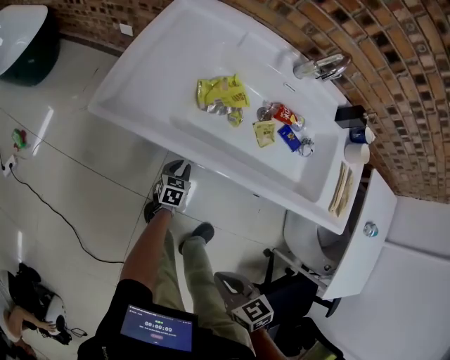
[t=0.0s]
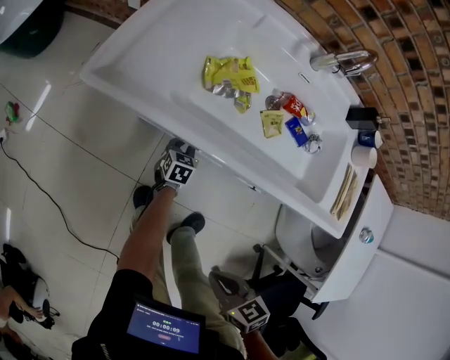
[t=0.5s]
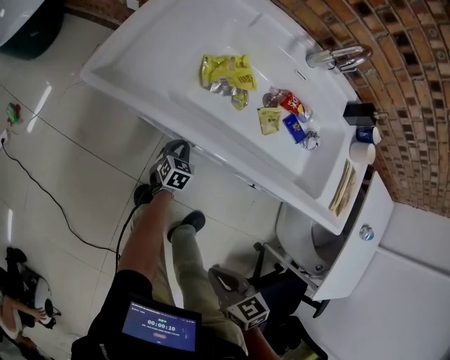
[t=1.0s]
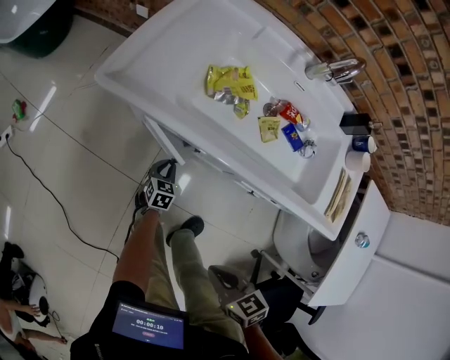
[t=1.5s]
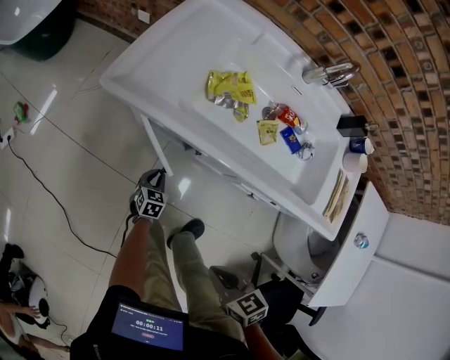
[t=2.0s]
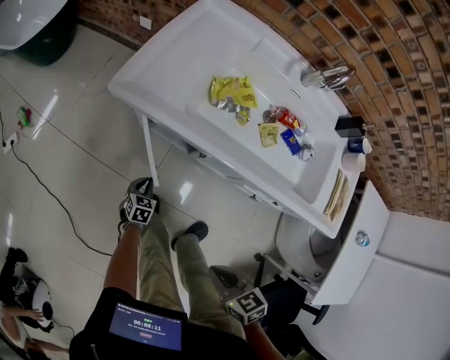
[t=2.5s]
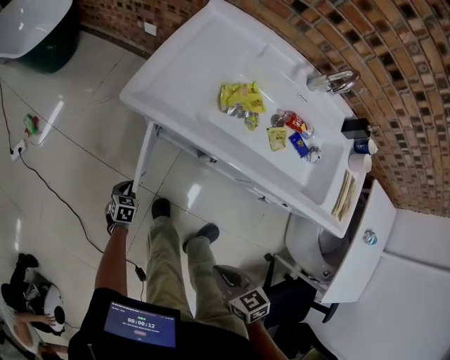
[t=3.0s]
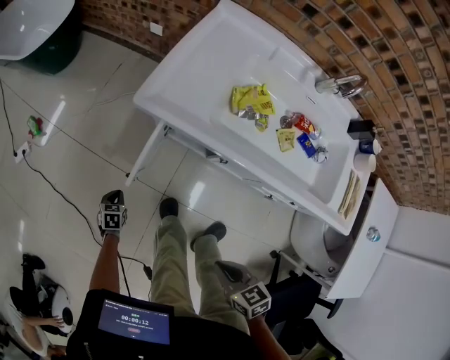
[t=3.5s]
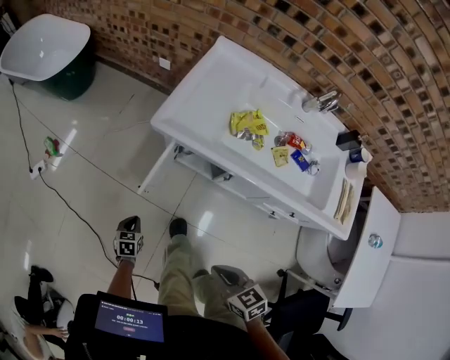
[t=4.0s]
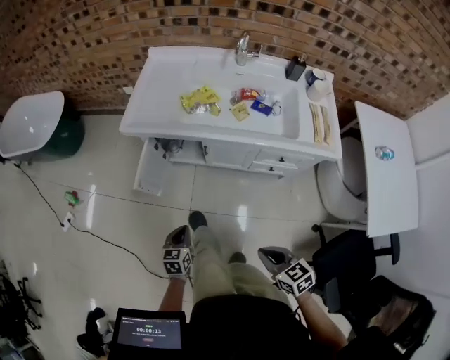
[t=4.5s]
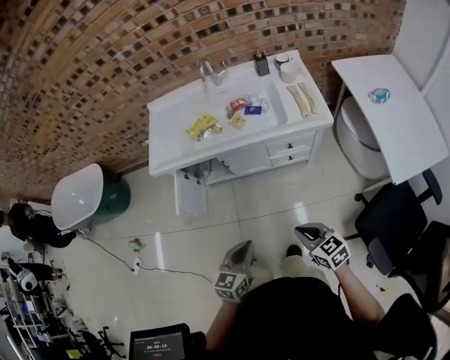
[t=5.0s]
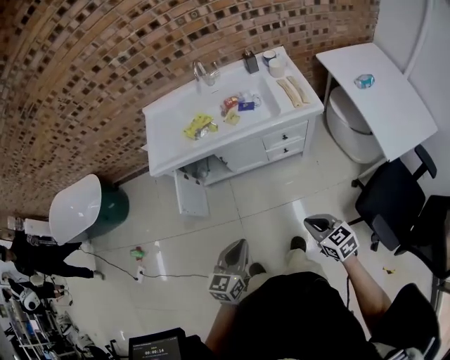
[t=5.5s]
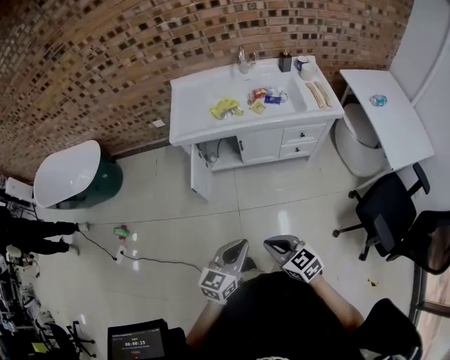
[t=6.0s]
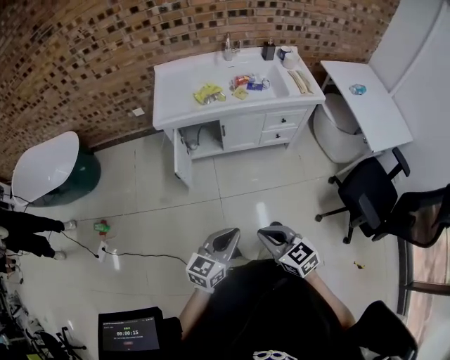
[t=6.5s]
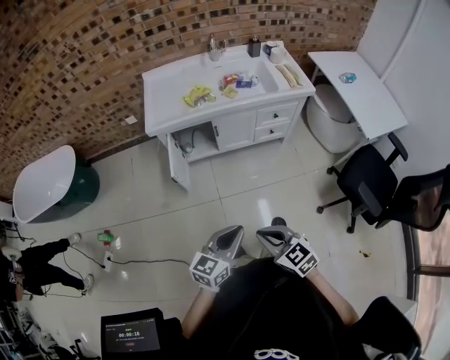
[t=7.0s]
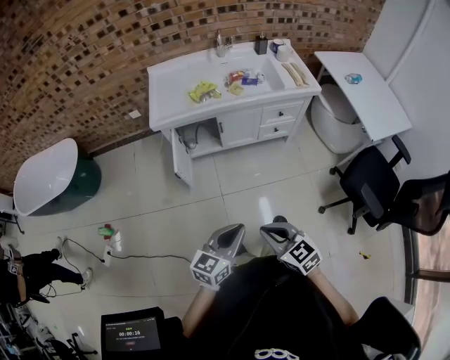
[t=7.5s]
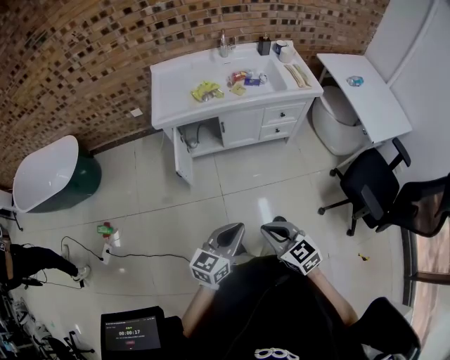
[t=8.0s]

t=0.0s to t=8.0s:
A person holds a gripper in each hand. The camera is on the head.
t=0.0s to t=2.0s: The left gripper goes some 10 cm to the left and backward.
t=2.0s to t=4.0s: The left gripper moves to the left, approximately 25 cm. The right gripper is displaced to the left and upward by some 15 cm.
t=4.0s to t=6.0s: The right gripper changes place by some 30 cm, and rotates approximately 20 degrees. The left gripper is displaced upward by some 40 cm, and tilts its fingers about 40 degrees upward.
t=6.0s to t=8.0s: The right gripper moves some 5 cm.

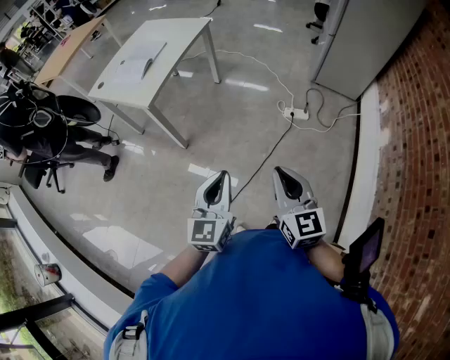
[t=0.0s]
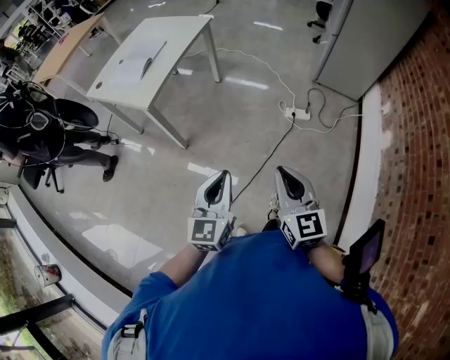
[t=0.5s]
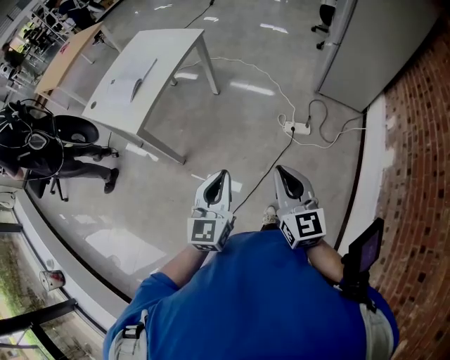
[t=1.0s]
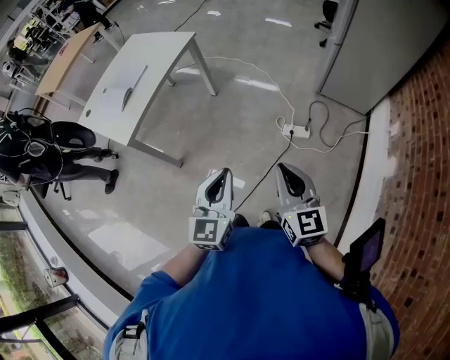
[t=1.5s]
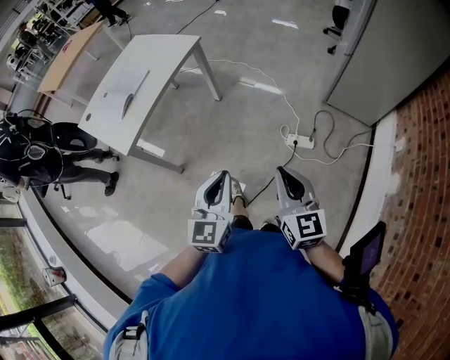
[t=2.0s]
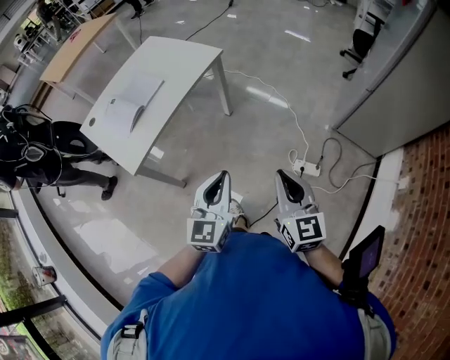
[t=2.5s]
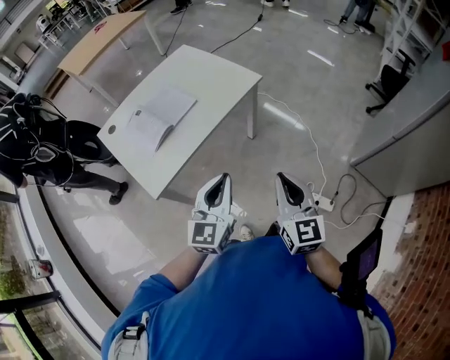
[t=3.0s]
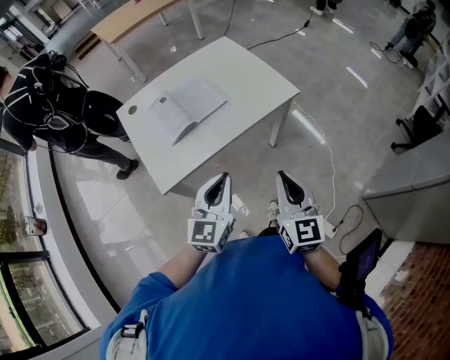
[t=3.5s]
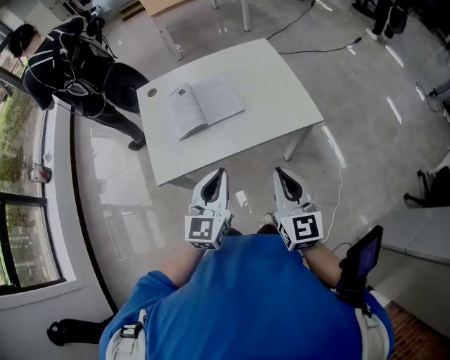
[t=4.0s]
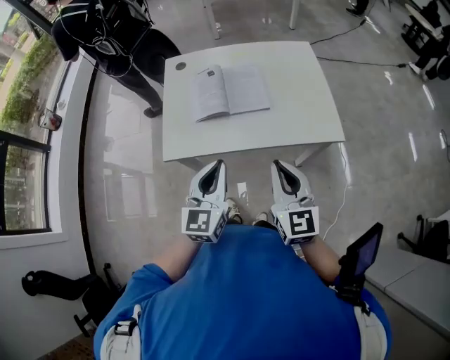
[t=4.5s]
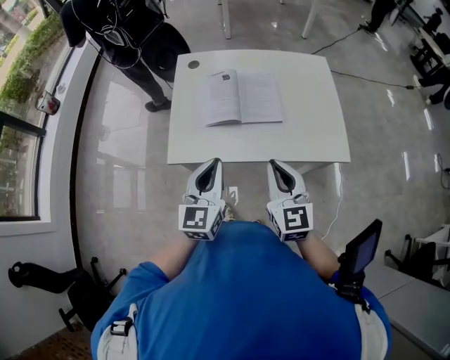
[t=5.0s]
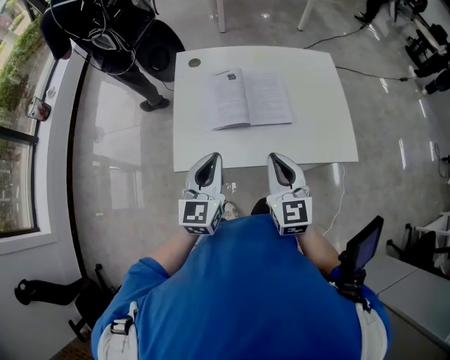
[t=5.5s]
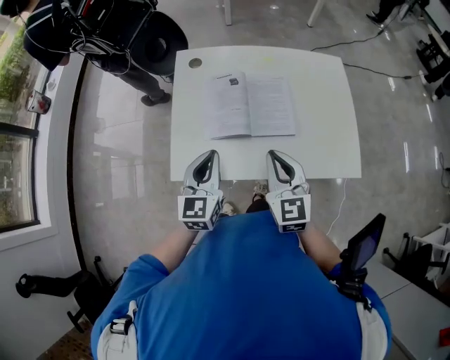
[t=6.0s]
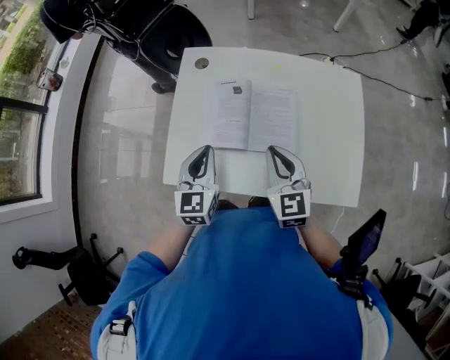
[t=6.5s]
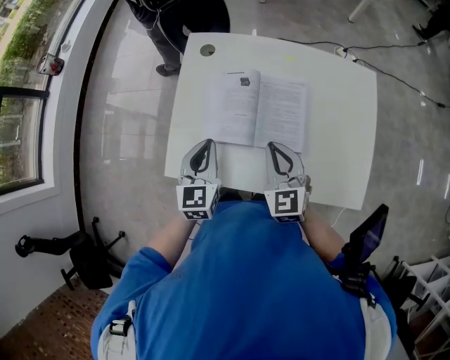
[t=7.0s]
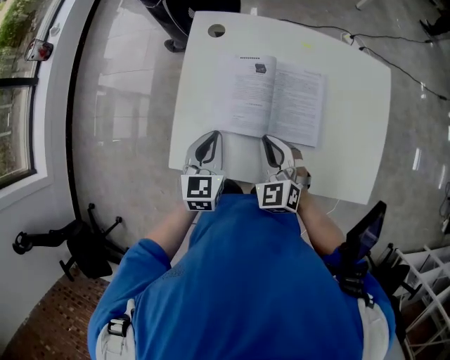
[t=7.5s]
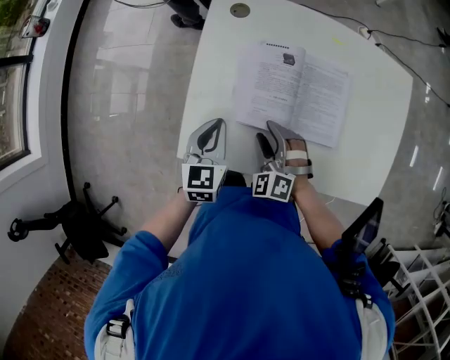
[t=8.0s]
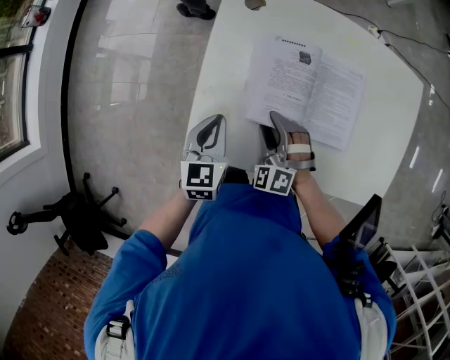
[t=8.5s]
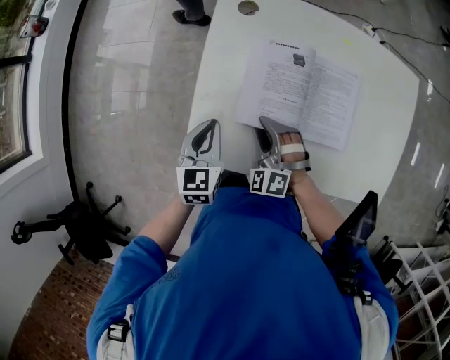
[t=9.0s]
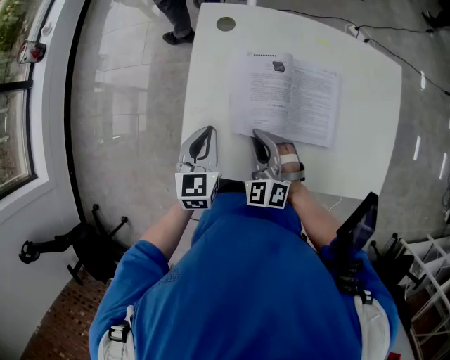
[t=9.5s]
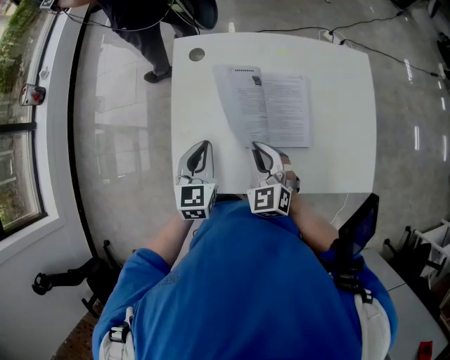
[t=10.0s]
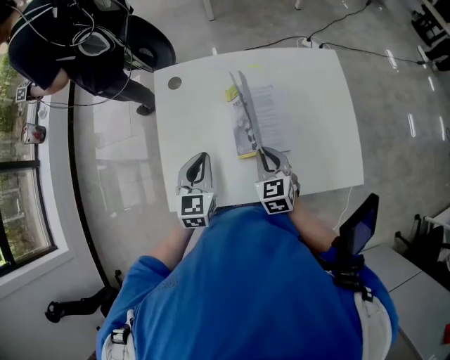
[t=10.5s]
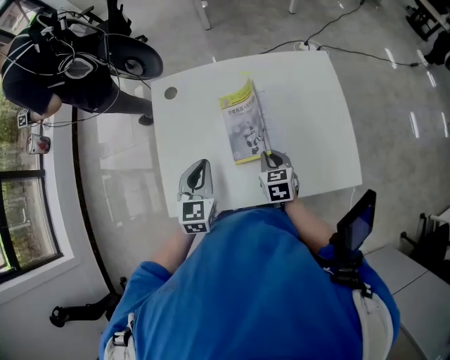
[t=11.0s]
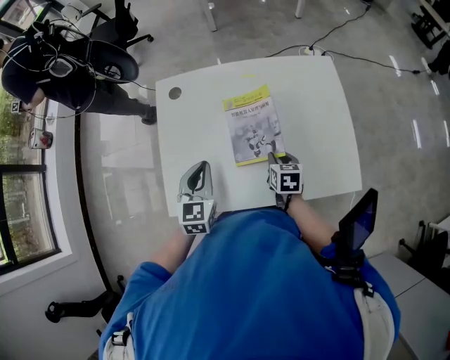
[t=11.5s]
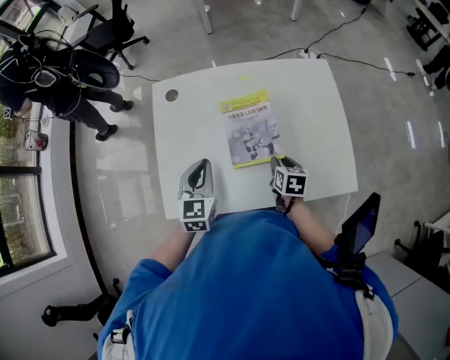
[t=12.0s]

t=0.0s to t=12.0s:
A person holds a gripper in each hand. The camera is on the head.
t=0.0s to t=2.0s: The grippers both shift forward and to the right by about 35 cm.
t=2.0s to t=4.0s: Both grippers are carried about 60 cm. The left gripper swivels roughly 40 degrees. The right gripper turns by roughly 40 degrees.
t=4.0s to t=6.0s: The grippers both shift forward and to the left by approximately 25 cm. The left gripper turns by about 20 degrees, while the right gripper swivels roughly 30 degrees.
t=6.0s to t=8.0s: The two grippers go about 20 cm downward, forward and to the left. The right gripper rolls counterclockwise, seen from behind, by about 50 degrees, and opens its fingers.
t=8.0s to t=10.0s: The left gripper shifts about 5 cm upward. Meanwhile the right gripper travels upward and to the right by approximately 10 cm, changes its angle by approximately 30 degrees, and closes.
t=10.0s to t=12.0s: The left gripper shifts about 10 cm to the right. The right gripper is displaced to the right and downward by approximately 20 cm, rotates around the line of its fingers by approximately 60 degrees, clockwise from behind, and opens.

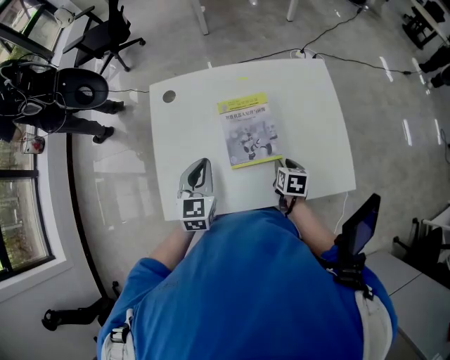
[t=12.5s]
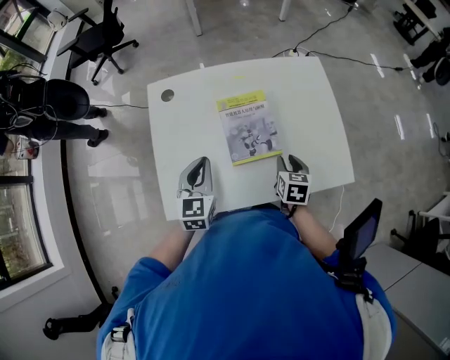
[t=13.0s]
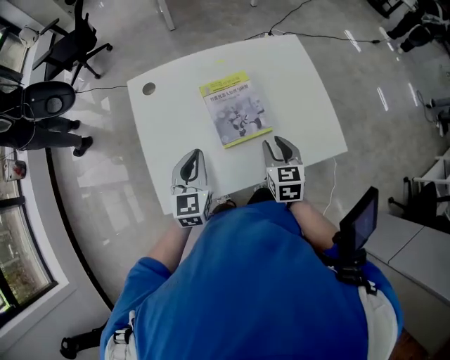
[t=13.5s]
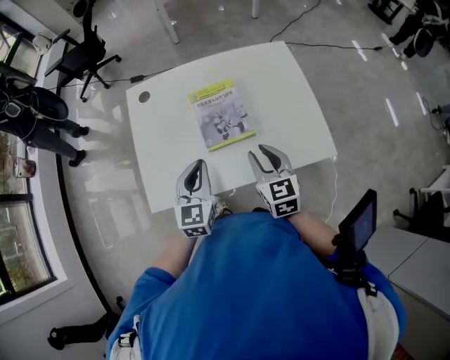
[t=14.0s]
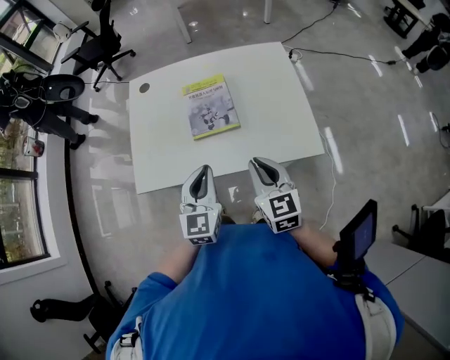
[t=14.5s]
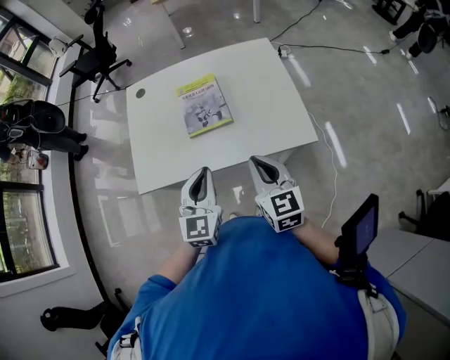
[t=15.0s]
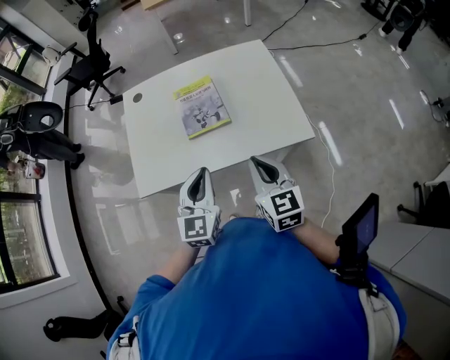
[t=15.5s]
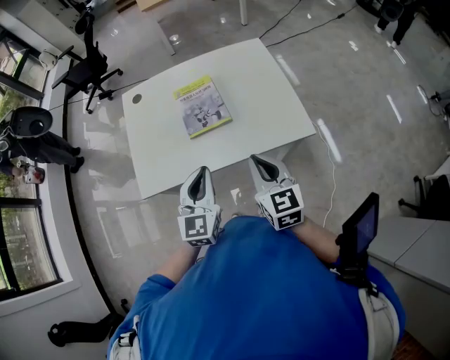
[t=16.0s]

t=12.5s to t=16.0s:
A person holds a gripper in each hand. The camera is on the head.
t=12.5s to t=14.5s: The left gripper moves backward and to the right, about 25 cm; the right gripper moves upward and backward, approximately 25 cm, points its fingers approximately 30 degrees further upward, and closes up.
t=14.5s to t=16.0s: The right gripper changes place by some 5 cm. Meanwhile the left gripper moves approximately 5 cm.

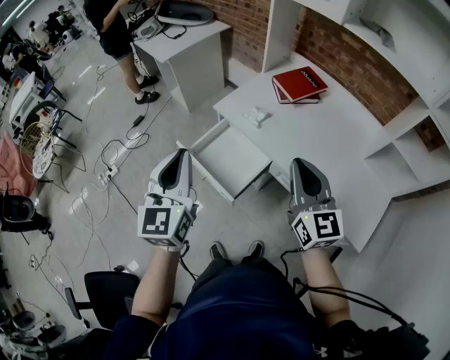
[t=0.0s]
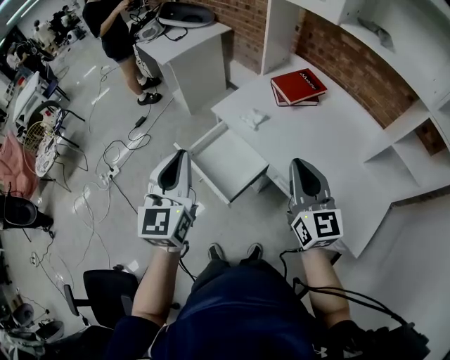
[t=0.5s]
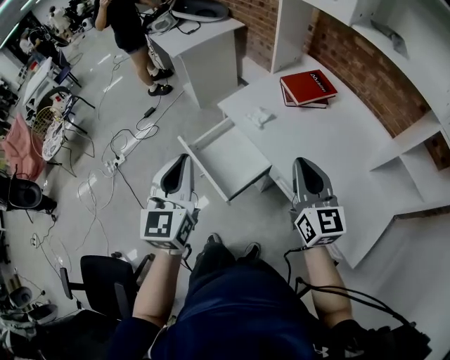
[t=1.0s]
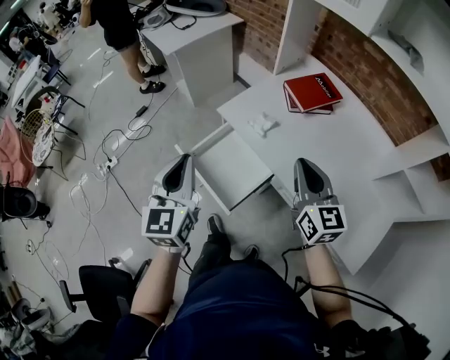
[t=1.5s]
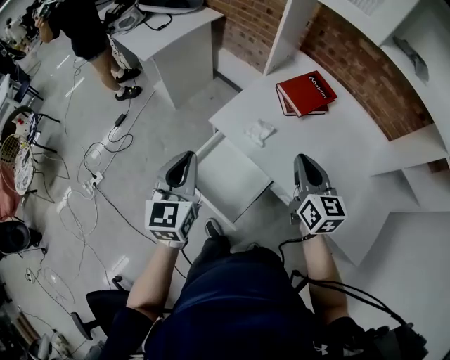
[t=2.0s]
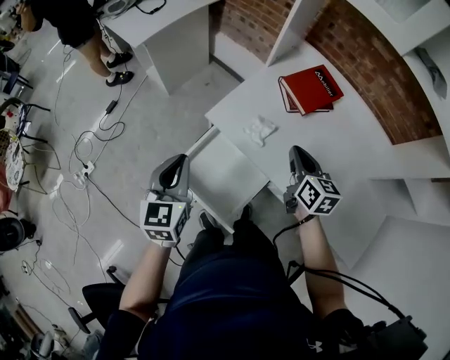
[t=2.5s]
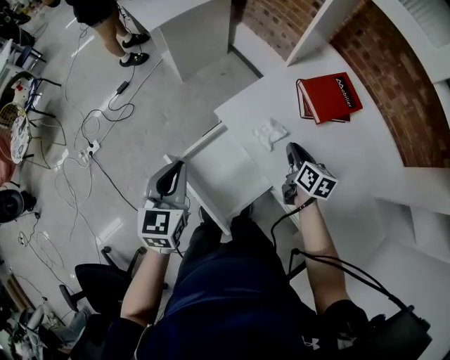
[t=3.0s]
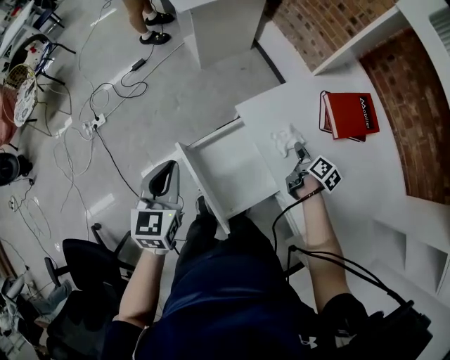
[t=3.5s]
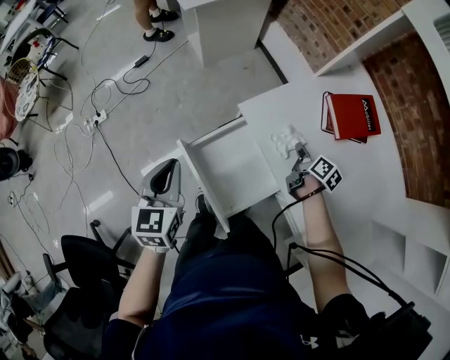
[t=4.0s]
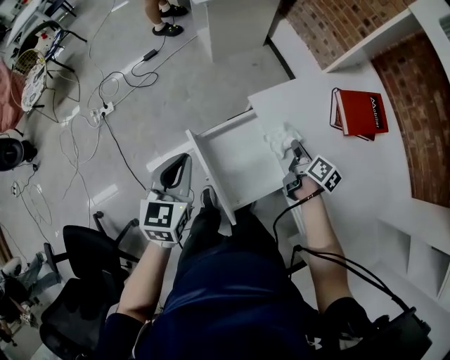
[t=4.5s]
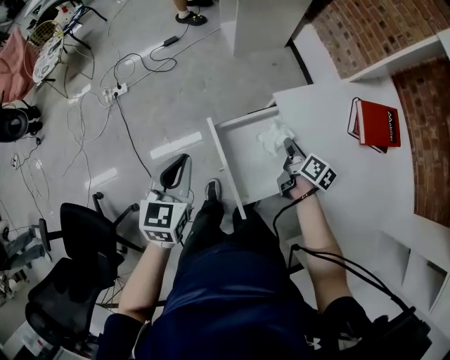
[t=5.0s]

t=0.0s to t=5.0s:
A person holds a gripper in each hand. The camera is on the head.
t=0.0s to t=2.5s: Both grippers travel together forward and downward, approximately 30 cm. The right gripper rotates some 30 degrees.
t=2.5s to t=5.0s: The right gripper shifts some 15 cm downward, rotates some 40 degrees, and opens and closes again, while the left gripper changes place by approximately 15 cm, and swivels about 30 degrees.
